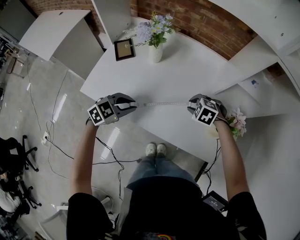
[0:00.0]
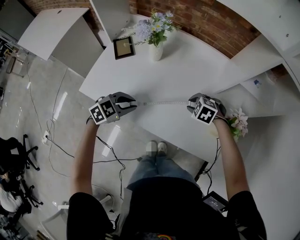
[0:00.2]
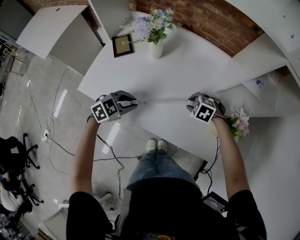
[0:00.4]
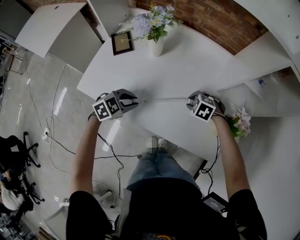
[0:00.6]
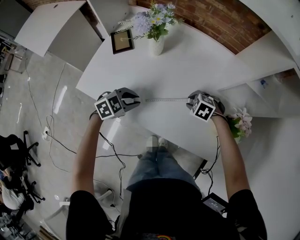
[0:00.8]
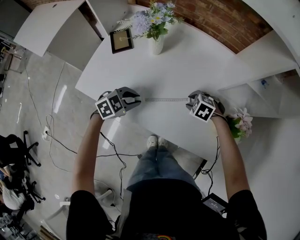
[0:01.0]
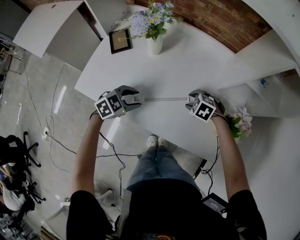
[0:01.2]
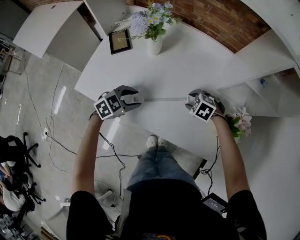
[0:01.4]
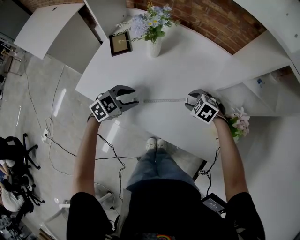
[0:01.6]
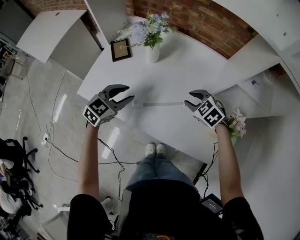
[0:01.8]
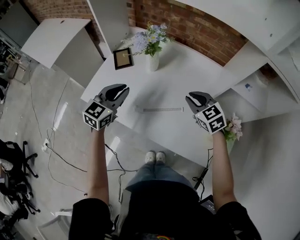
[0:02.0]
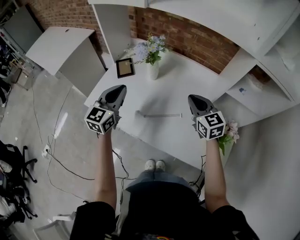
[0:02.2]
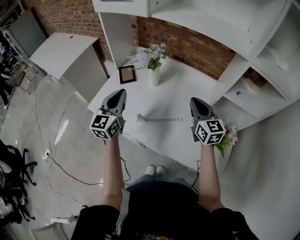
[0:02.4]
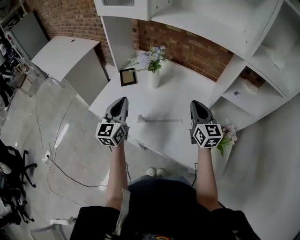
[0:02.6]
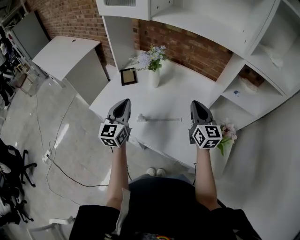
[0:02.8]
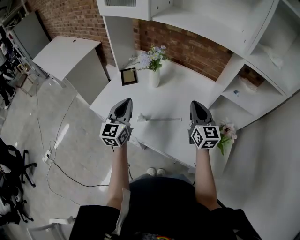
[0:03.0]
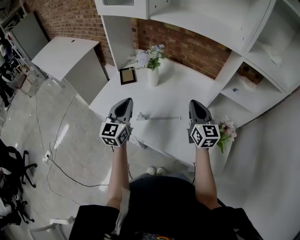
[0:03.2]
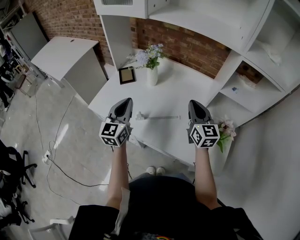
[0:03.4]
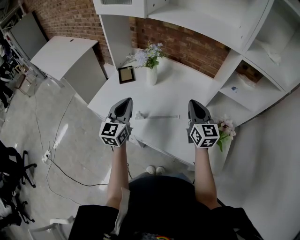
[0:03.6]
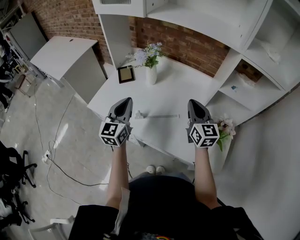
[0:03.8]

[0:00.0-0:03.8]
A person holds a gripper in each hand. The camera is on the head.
0:00.0 to 0:01.2: Both grippers move downward, approximately 5 cm. The left gripper opens its fingers.
0:01.2 to 0:02.6: Both grippers move upward, some 25 cm. The left gripper angles its fingers upward, by some 50 degrees, and closes its fingers, while the right gripper tilts its fingers approximately 70 degrees upward, and closes its fingers.
0:02.6 to 0:03.8: There are only small adjustments of the grippers.

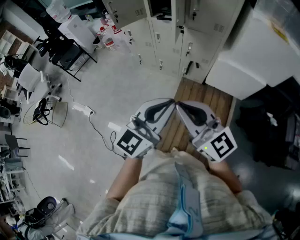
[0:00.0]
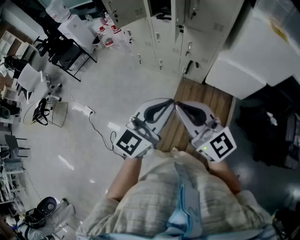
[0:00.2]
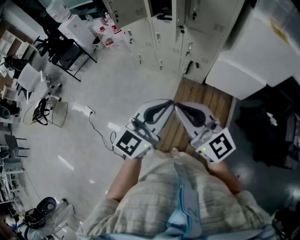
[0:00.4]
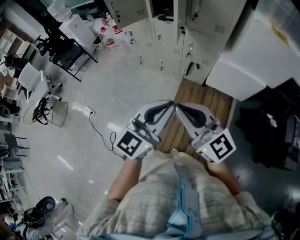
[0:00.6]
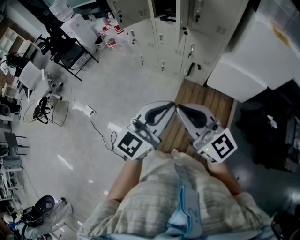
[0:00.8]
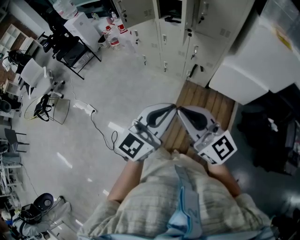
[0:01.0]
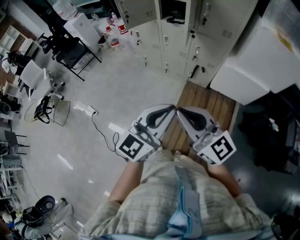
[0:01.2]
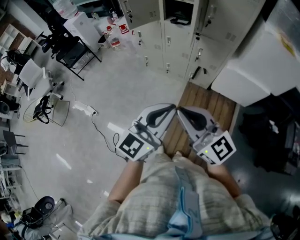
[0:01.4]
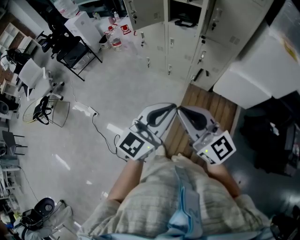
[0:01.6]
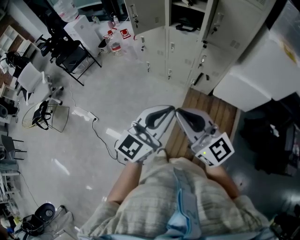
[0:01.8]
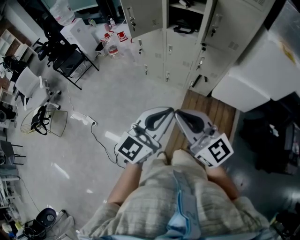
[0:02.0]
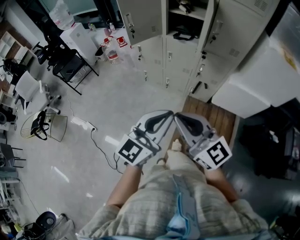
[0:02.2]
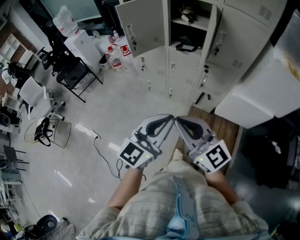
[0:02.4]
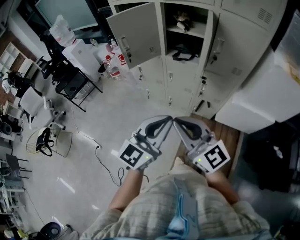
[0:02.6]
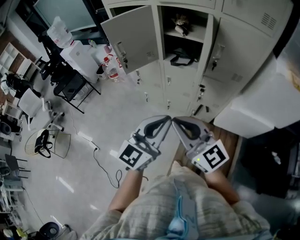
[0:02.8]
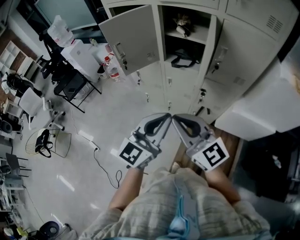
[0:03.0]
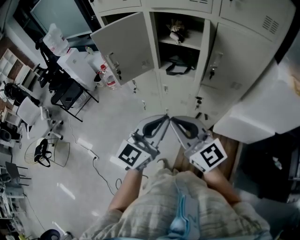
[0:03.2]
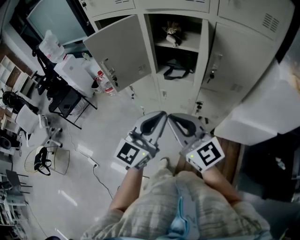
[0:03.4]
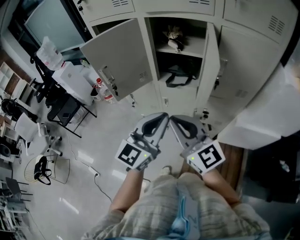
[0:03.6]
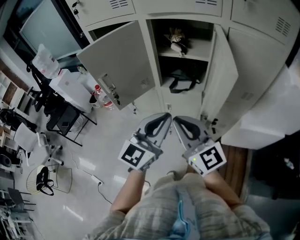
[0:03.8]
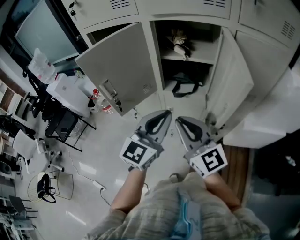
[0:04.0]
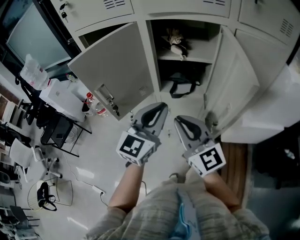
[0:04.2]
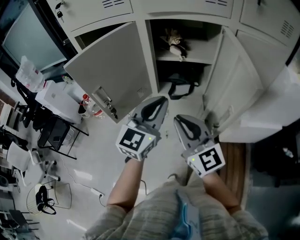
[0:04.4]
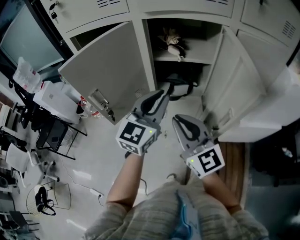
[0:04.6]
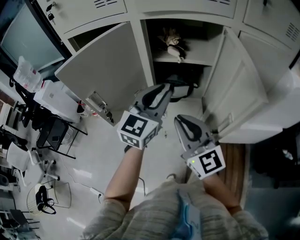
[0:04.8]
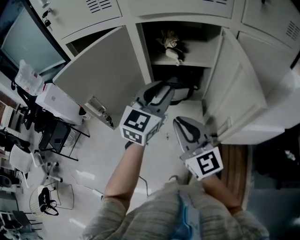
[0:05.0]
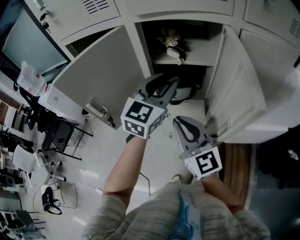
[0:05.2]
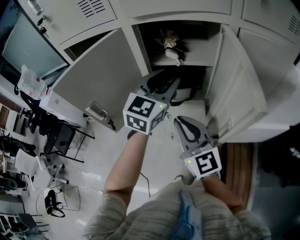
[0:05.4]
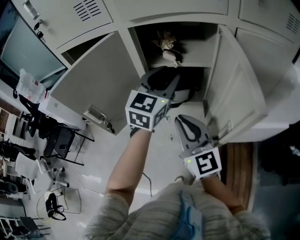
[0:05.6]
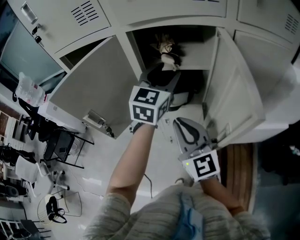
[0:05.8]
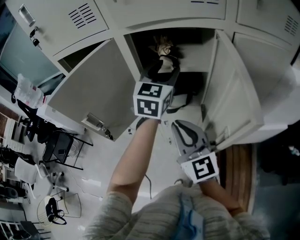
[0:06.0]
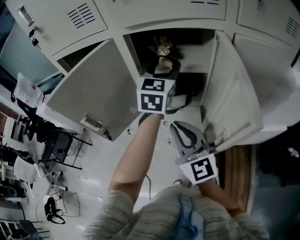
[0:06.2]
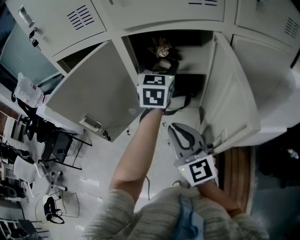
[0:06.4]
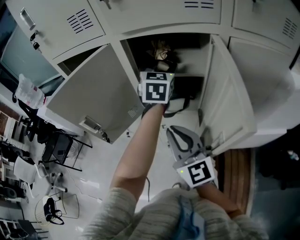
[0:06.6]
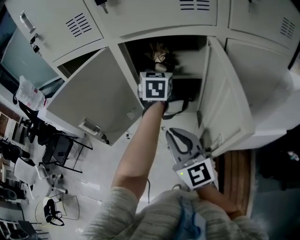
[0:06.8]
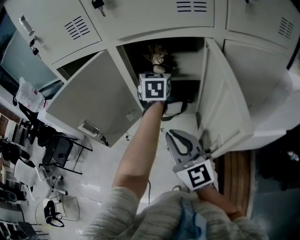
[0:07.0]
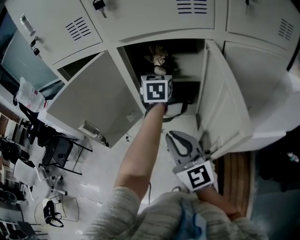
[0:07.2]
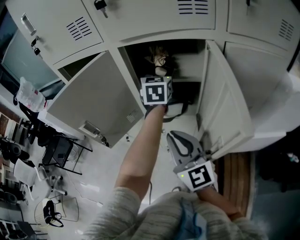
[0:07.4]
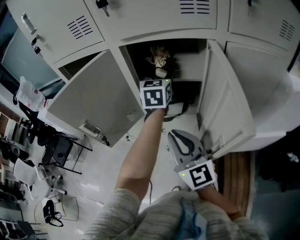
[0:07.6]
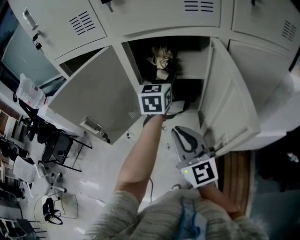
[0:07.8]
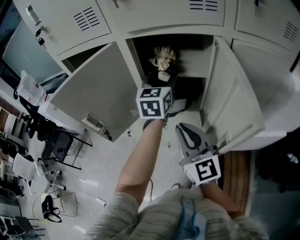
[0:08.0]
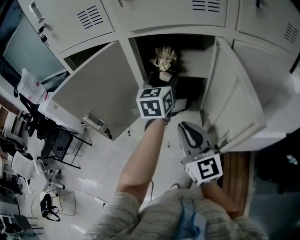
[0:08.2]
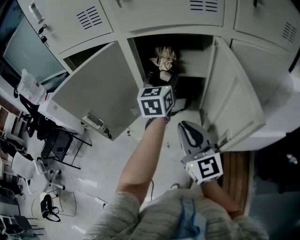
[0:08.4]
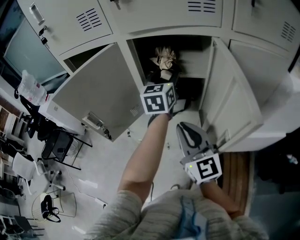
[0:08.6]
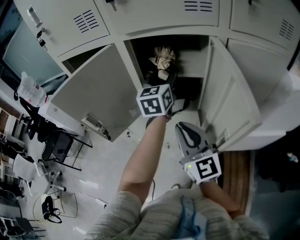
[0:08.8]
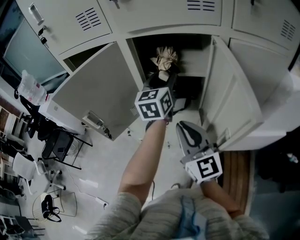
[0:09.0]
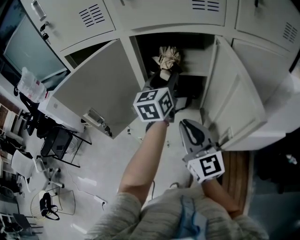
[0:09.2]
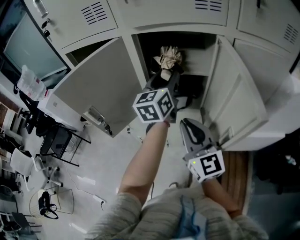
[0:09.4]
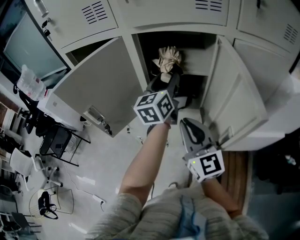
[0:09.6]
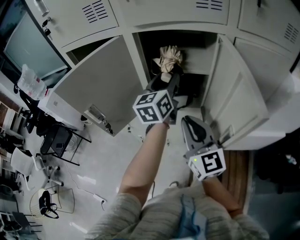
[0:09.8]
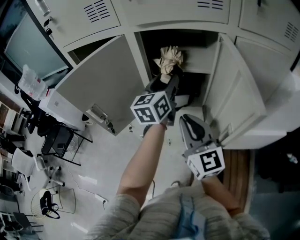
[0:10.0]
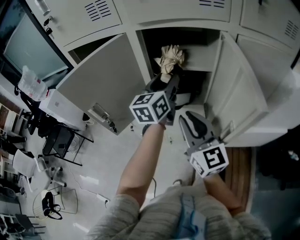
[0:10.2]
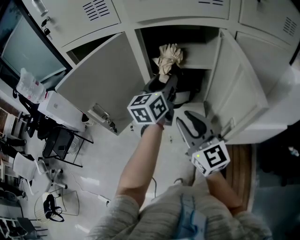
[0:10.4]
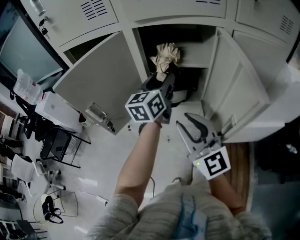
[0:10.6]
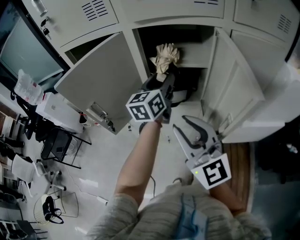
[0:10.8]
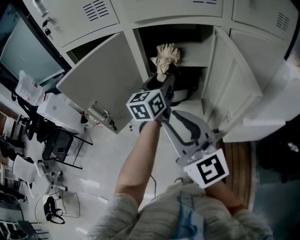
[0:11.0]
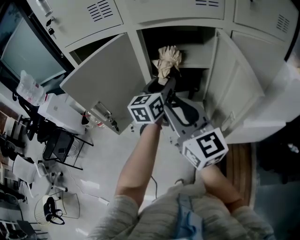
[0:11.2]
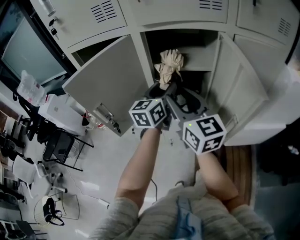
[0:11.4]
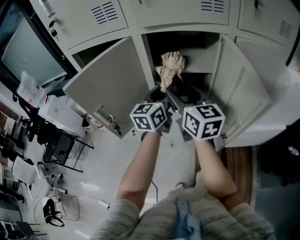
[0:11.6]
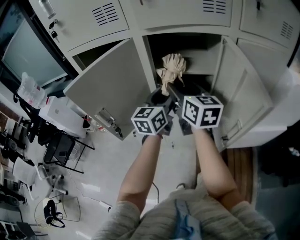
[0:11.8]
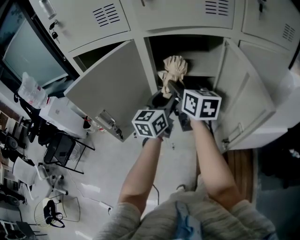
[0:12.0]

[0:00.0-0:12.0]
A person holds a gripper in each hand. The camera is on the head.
0:00.0 to 0:01.6: Both grippers travel together to the left, some 10 cm.
0:01.6 to 0:03.0: The two grippers go some 25 cm forward.
0:03.0 to 0:04.4: Both grippers travel together forward, approximately 25 cm. The right gripper turns by about 30 degrees.
0:04.4 to 0:06.0: The left gripper shifts some 20 cm forward, and opens its fingers, while the right gripper is displaced forward by roughly 5 cm.
0:06.0 to 0:07.6: The left gripper is displaced forward by about 5 cm.
0:07.6 to 0:09.0: The left gripper moves backward, about 5 cm.
0:09.0 to 0:10.4: The grippers stay close to where they were, moving slightly.
0:10.4 to 0:12.0: The right gripper moves forward, some 15 cm, turns by roughly 30 degrees, and opens up.

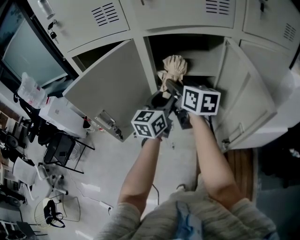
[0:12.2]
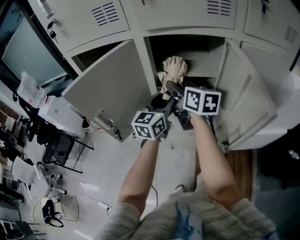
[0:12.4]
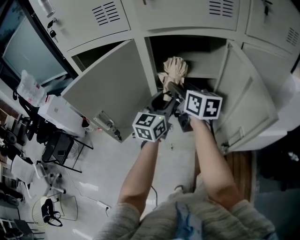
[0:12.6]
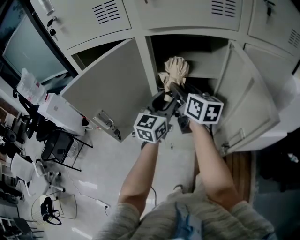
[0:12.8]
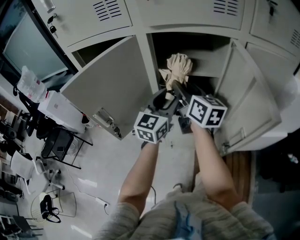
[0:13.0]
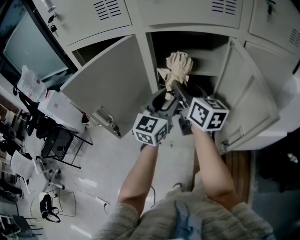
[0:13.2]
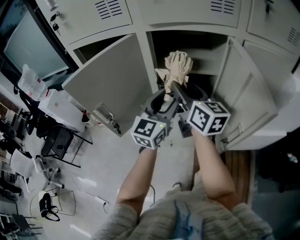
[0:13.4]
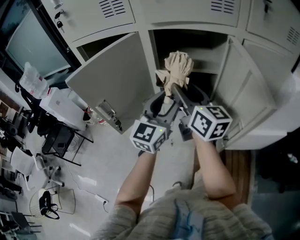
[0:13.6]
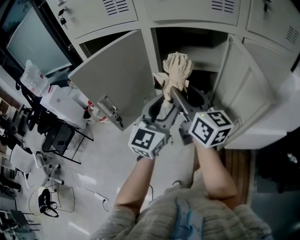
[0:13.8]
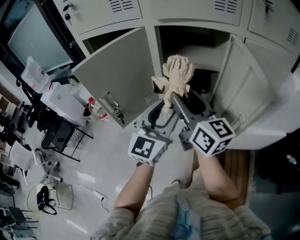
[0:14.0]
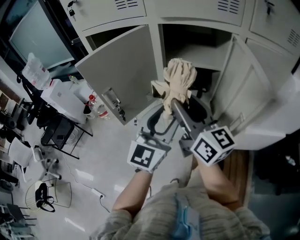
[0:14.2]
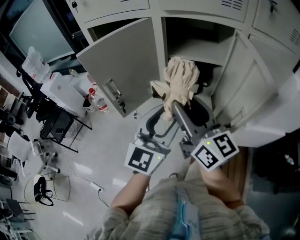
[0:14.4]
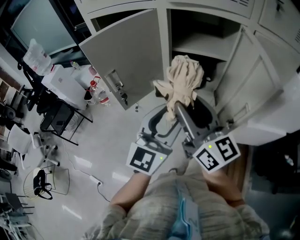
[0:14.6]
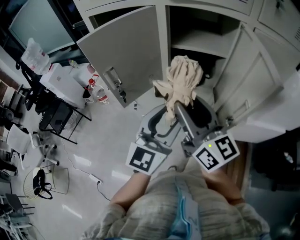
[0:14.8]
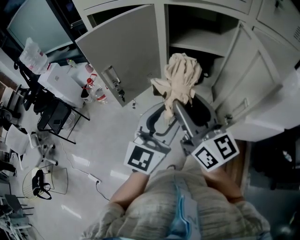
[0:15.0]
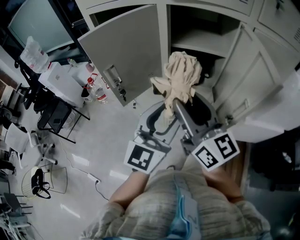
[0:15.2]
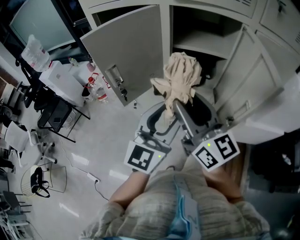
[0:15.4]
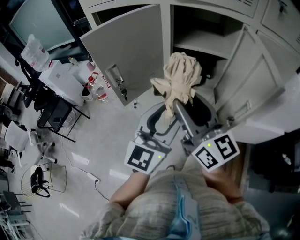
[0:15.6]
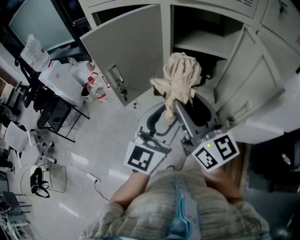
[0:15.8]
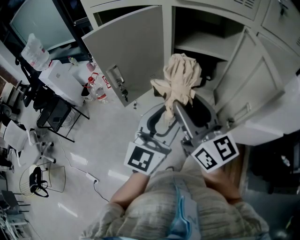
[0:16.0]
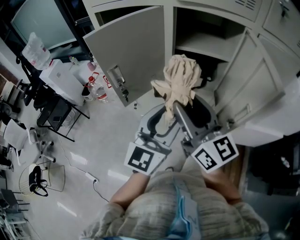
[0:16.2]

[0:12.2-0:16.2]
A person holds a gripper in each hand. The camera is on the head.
0:12.2 to 0:13.6: Both grippers travel together backward, approximately 10 cm.
0:13.6 to 0:14.8: The two grippers go roughly 15 cm backward.
0:14.8 to 0:16.2: The grippers move only a little.

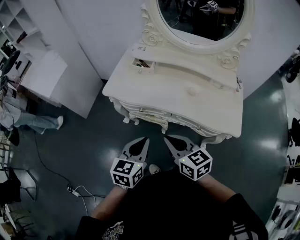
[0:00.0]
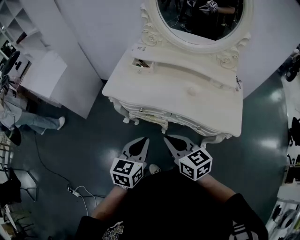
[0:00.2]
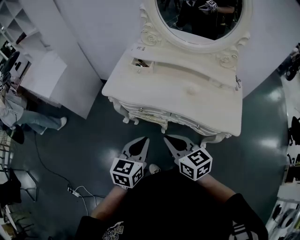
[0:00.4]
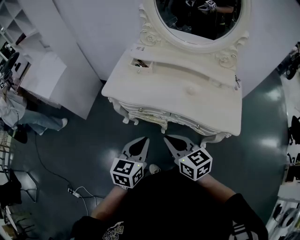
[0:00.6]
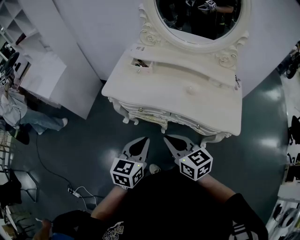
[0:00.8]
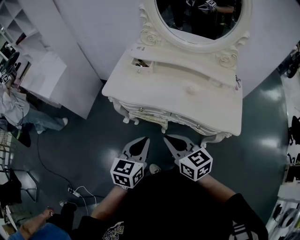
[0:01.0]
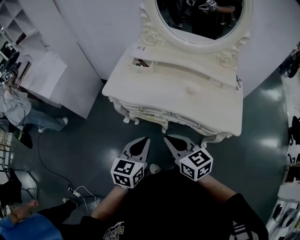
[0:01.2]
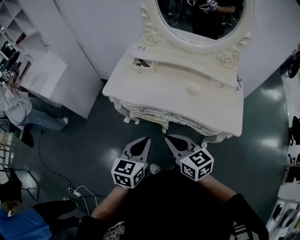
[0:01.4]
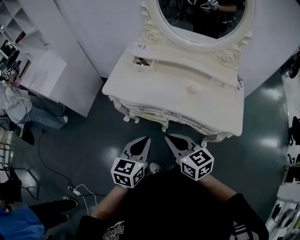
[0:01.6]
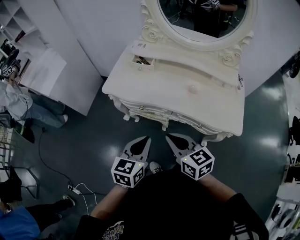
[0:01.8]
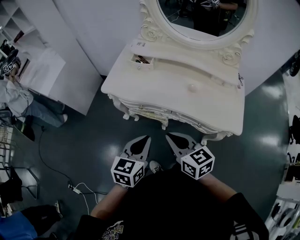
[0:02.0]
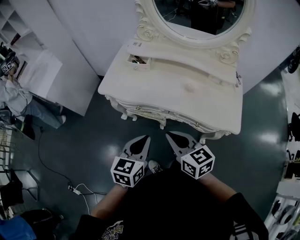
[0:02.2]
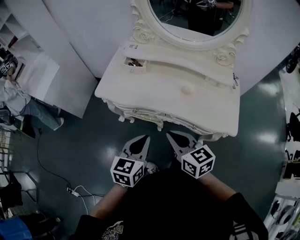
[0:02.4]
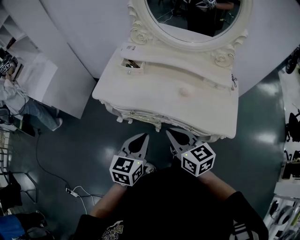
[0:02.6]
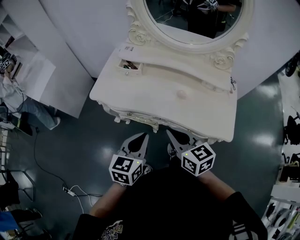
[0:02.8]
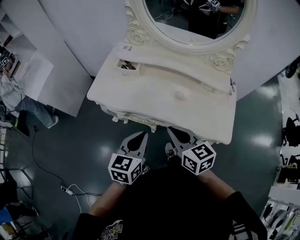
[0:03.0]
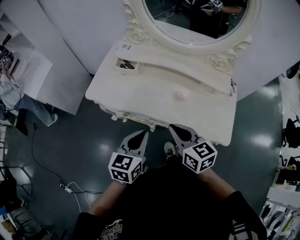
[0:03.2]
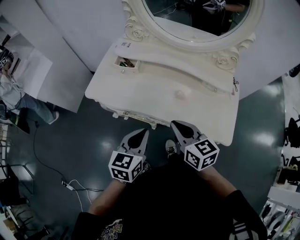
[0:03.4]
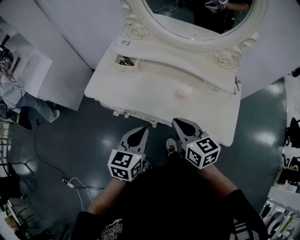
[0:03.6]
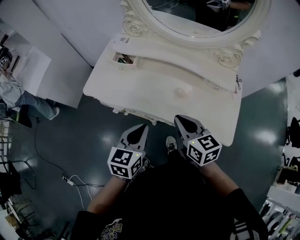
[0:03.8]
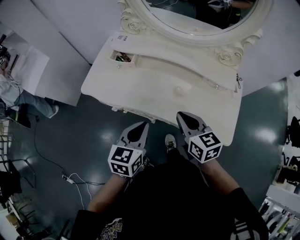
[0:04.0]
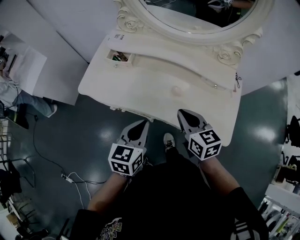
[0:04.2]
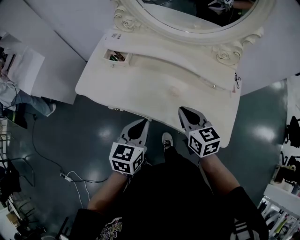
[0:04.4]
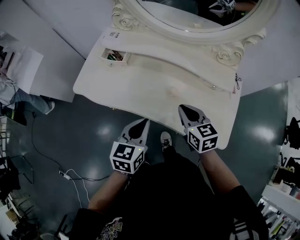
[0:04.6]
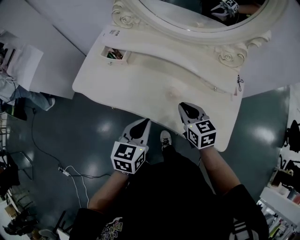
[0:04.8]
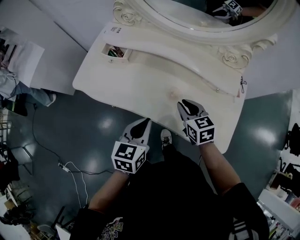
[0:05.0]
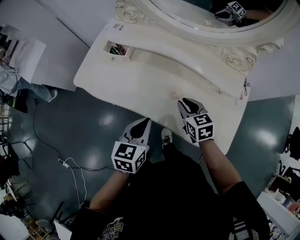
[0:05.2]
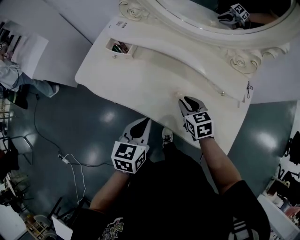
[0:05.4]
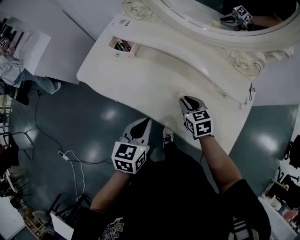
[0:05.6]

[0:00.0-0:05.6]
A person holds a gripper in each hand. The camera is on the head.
0:00.0 to 0:01.4: Neither gripper changes place.
0:01.4 to 0:02.8: Both grippers travel together to the right and forward, roughly 10 cm.
0:02.8 to 0:04.2: The left gripper goes some 10 cm forward and to the right, while the right gripper heads to the right and forward, covering some 15 cm.
0:04.2 to 0:05.6: The right gripper travels downward and forward by about 15 cm, and swivels roughly 20 degrees; the left gripper shifts by roughly 5 cm.
